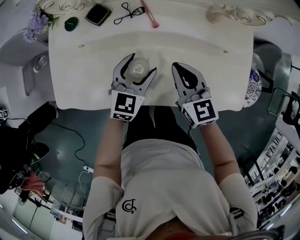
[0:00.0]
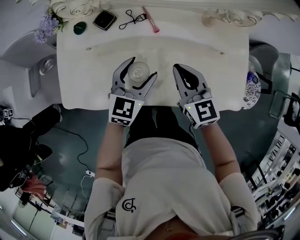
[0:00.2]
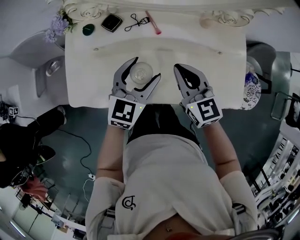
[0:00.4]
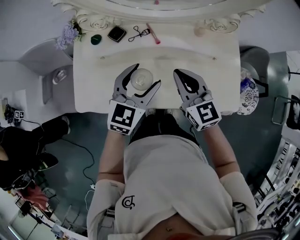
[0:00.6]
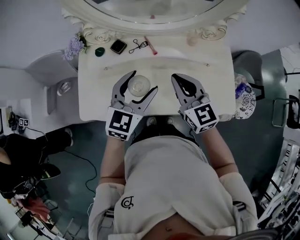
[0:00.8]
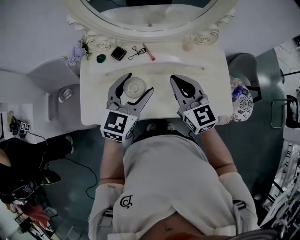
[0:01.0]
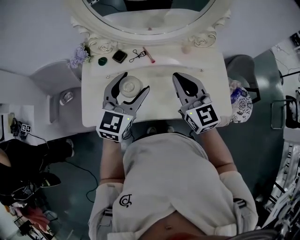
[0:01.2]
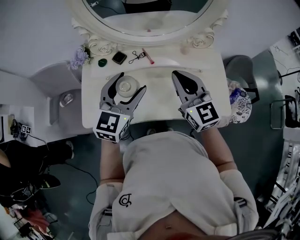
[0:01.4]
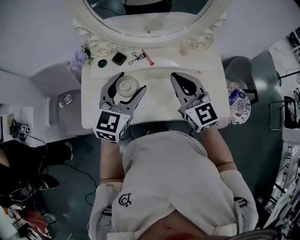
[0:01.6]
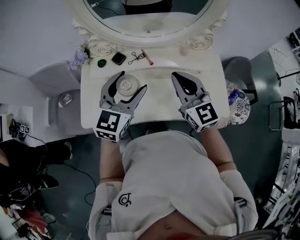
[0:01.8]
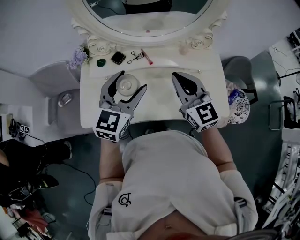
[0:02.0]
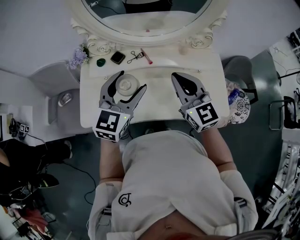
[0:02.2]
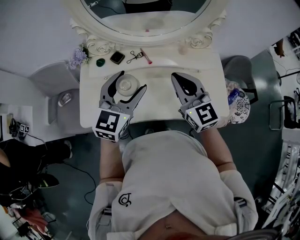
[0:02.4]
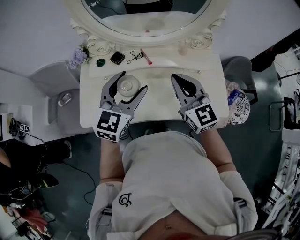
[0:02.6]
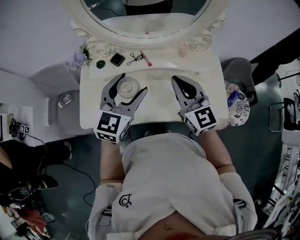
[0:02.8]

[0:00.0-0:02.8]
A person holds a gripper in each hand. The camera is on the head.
0:00.0 to 0:01.4: The two grippers go approximately 25 cm upward. The right gripper swivels approximately 20 degrees.
0:01.4 to 0:02.8: The grippers stay close to where they were, moving slightly.

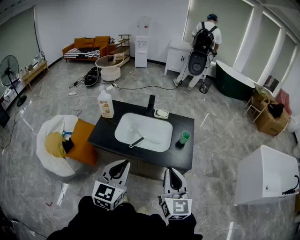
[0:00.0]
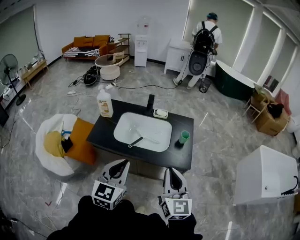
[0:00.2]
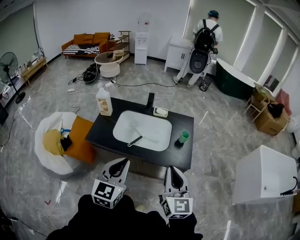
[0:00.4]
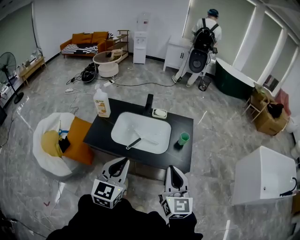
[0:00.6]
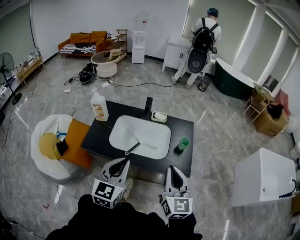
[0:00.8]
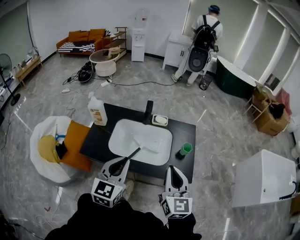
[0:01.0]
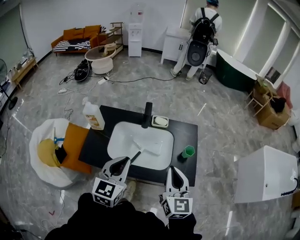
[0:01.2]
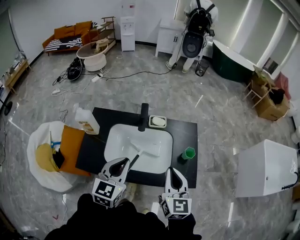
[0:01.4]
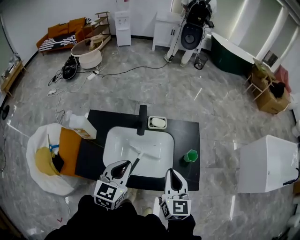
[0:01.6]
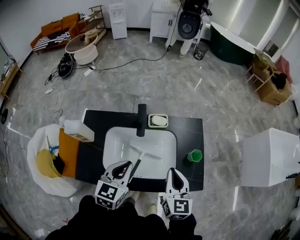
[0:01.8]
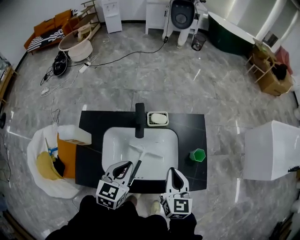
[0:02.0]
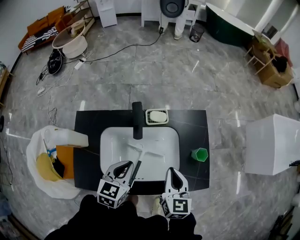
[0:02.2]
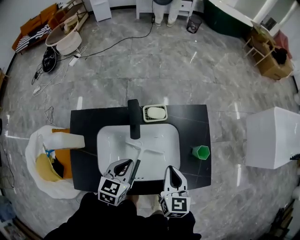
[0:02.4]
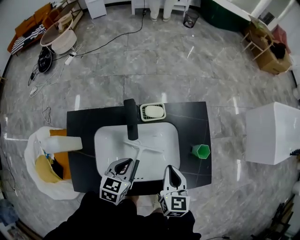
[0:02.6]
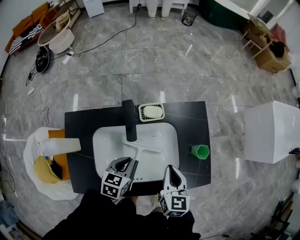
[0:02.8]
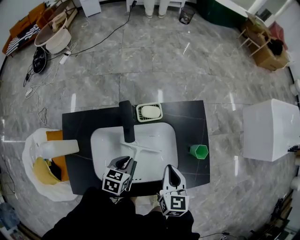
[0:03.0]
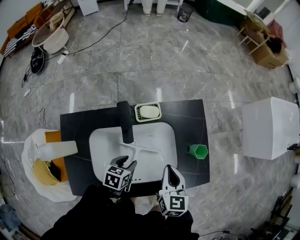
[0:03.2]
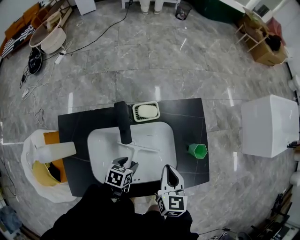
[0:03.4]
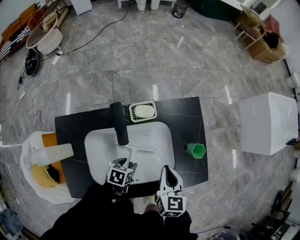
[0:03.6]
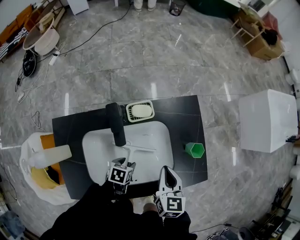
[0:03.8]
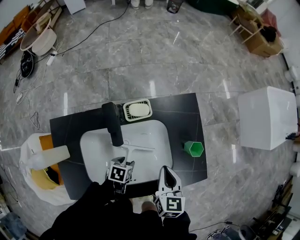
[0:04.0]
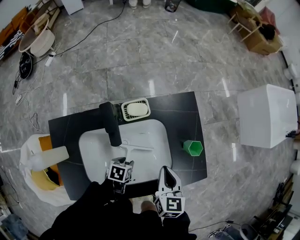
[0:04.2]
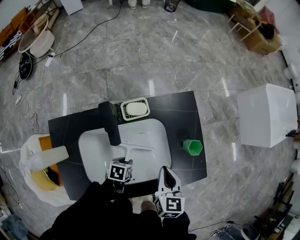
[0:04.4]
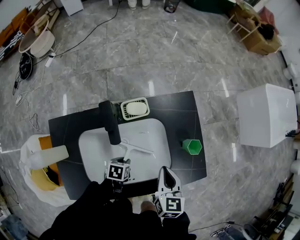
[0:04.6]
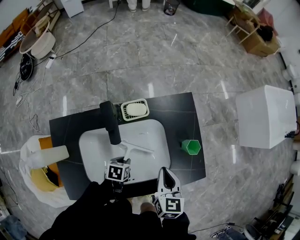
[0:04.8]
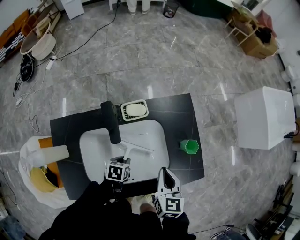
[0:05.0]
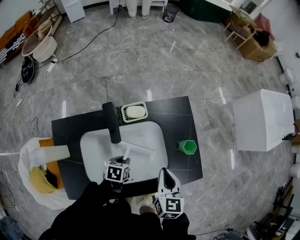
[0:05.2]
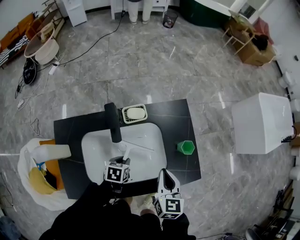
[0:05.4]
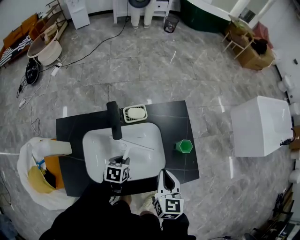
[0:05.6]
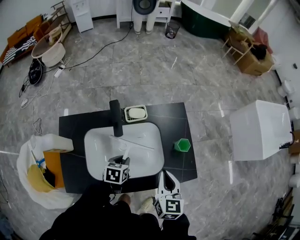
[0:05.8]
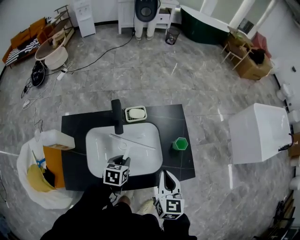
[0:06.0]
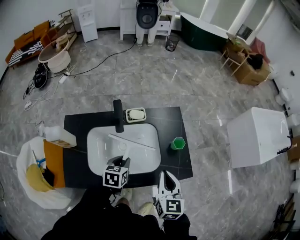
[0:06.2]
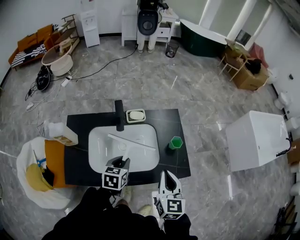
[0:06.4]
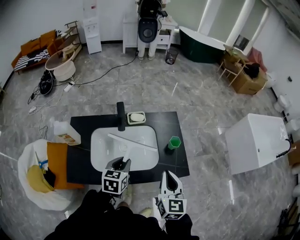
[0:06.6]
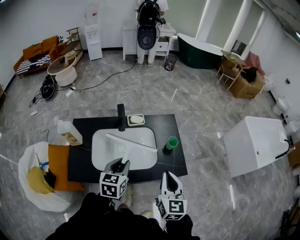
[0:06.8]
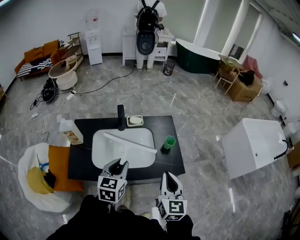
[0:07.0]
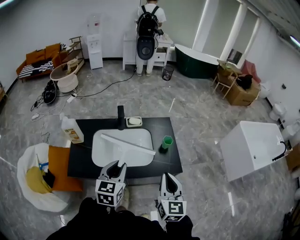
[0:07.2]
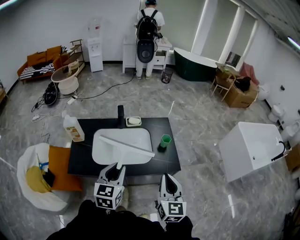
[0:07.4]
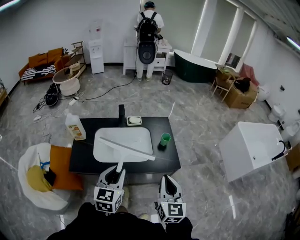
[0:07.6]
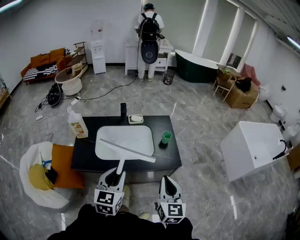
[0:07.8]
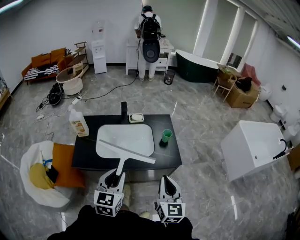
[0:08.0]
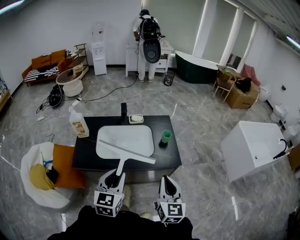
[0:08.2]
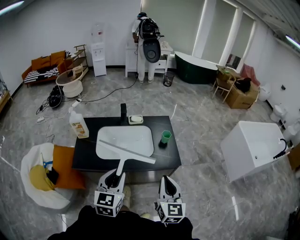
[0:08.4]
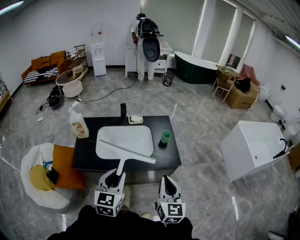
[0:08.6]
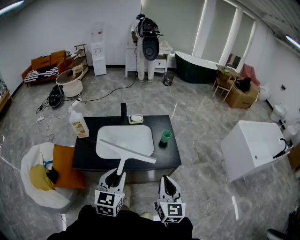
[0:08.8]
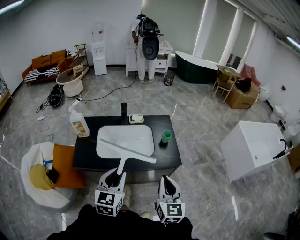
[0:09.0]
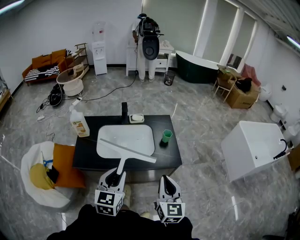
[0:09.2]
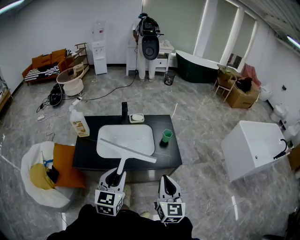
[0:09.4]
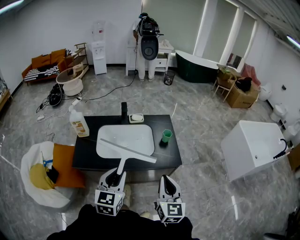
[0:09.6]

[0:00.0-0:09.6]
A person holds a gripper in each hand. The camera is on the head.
0:00.0 to 0:01.6: Both grippers move forward, about 35 cm.
0:01.6 to 0:03.2: The right gripper shifts approximately 20 cm downward and forward, and changes its angle by some 20 degrees; the left gripper is displaced downward and forward by about 30 cm, swivels roughly 40 degrees, and opens.
0:03.2 to 0:04.8: The left gripper is displaced downward by about 5 cm.
0:04.8 to 0:06.4: The left gripper heads upward, covering about 25 cm, and turns by some 30 degrees, while the right gripper travels upward, backward and to the right by approximately 20 cm.
0:06.4 to 0:08.0: The left gripper heads backward and upward, covering some 35 cm, and turns by roughly 30 degrees. The right gripper shifts about 25 cm backward.
0:08.0 to 0:09.6: Both grippers stay about where they are.

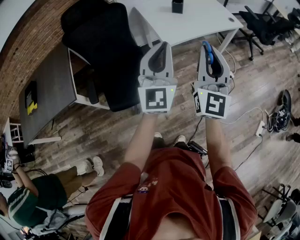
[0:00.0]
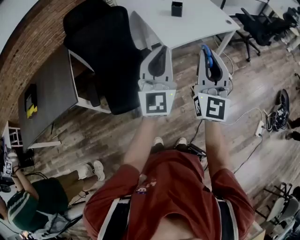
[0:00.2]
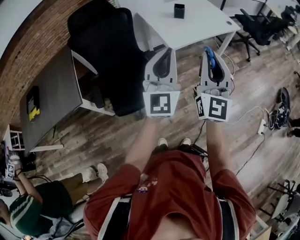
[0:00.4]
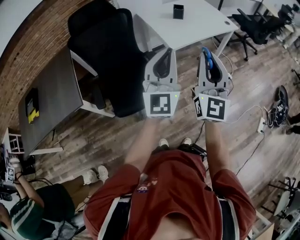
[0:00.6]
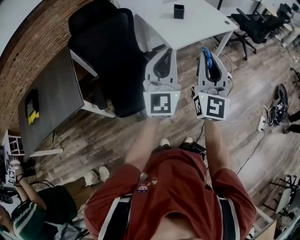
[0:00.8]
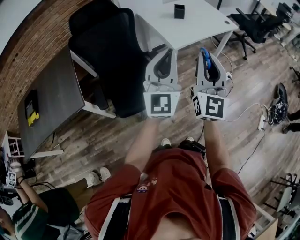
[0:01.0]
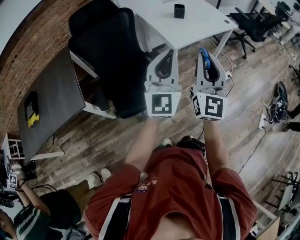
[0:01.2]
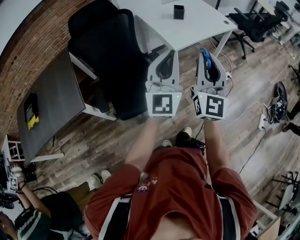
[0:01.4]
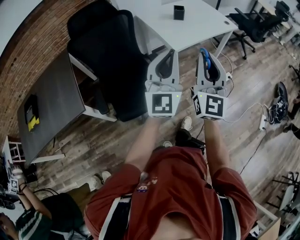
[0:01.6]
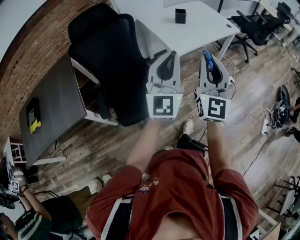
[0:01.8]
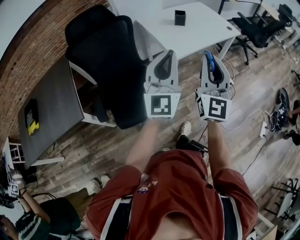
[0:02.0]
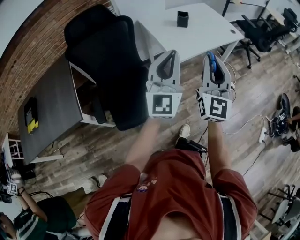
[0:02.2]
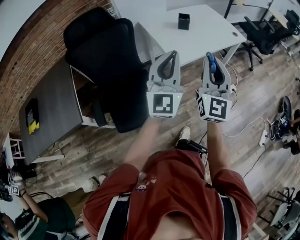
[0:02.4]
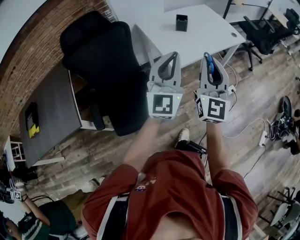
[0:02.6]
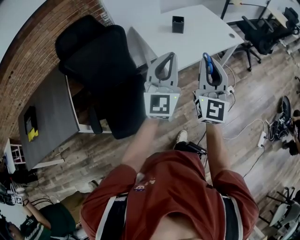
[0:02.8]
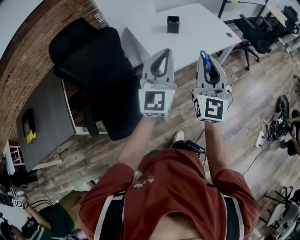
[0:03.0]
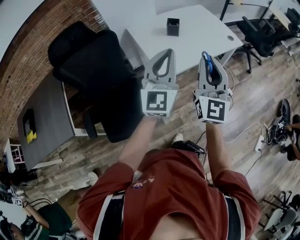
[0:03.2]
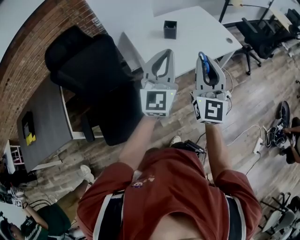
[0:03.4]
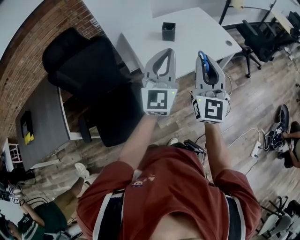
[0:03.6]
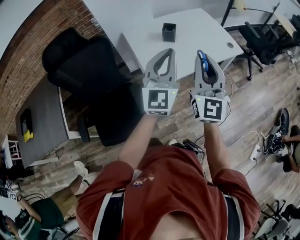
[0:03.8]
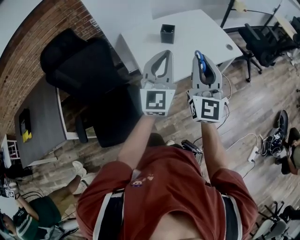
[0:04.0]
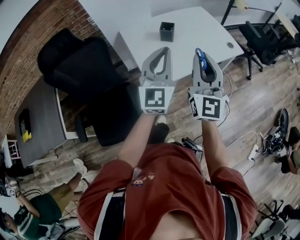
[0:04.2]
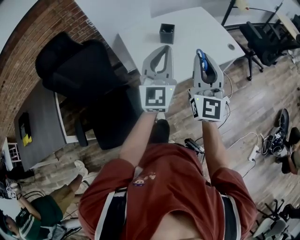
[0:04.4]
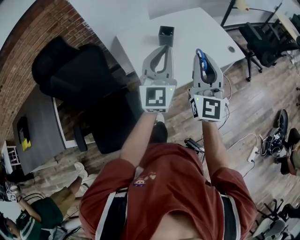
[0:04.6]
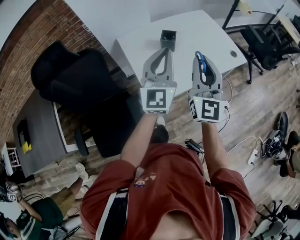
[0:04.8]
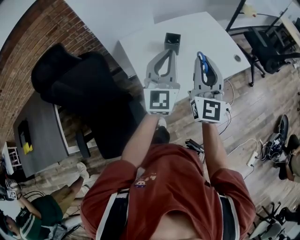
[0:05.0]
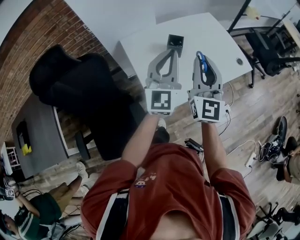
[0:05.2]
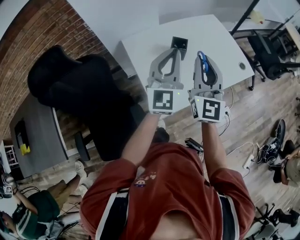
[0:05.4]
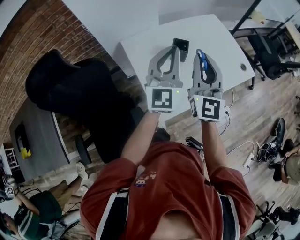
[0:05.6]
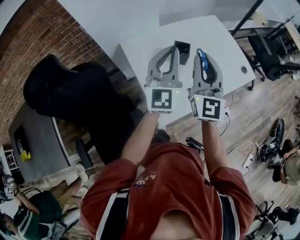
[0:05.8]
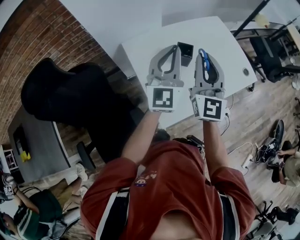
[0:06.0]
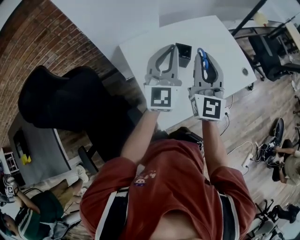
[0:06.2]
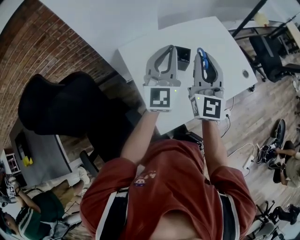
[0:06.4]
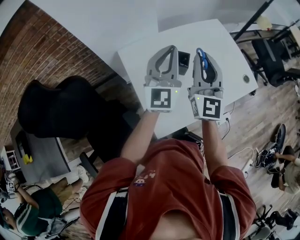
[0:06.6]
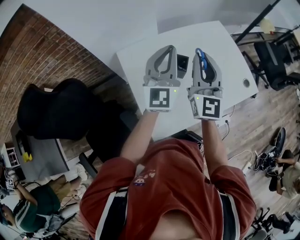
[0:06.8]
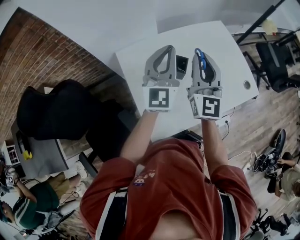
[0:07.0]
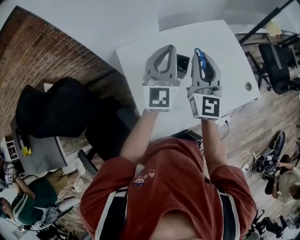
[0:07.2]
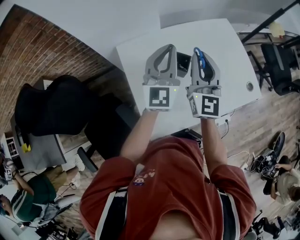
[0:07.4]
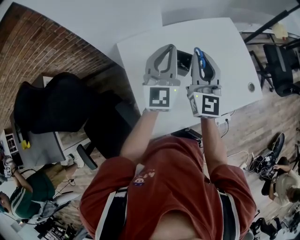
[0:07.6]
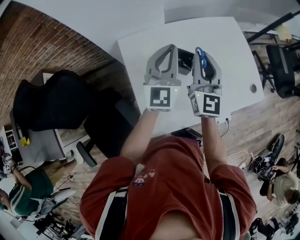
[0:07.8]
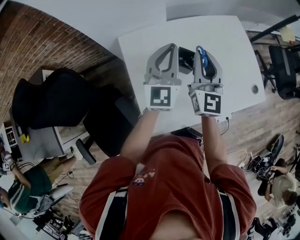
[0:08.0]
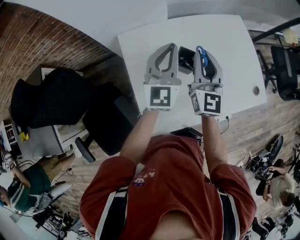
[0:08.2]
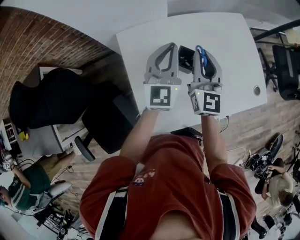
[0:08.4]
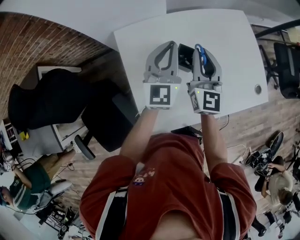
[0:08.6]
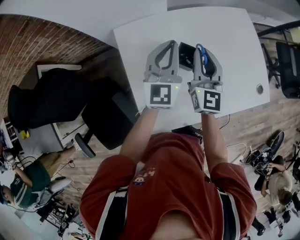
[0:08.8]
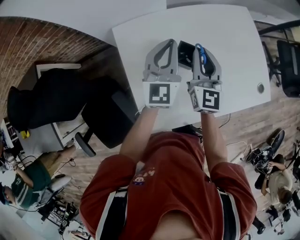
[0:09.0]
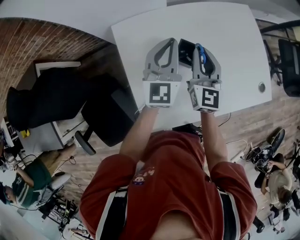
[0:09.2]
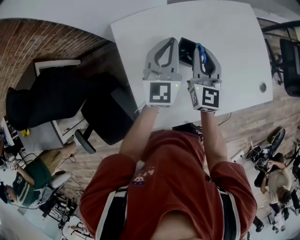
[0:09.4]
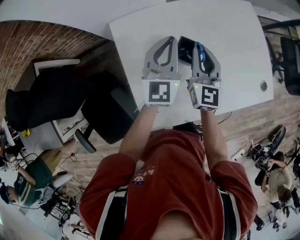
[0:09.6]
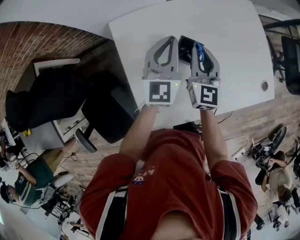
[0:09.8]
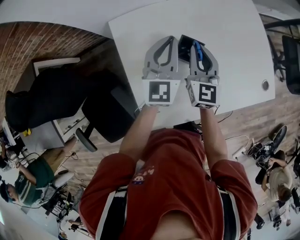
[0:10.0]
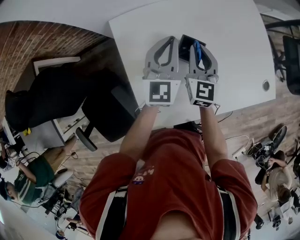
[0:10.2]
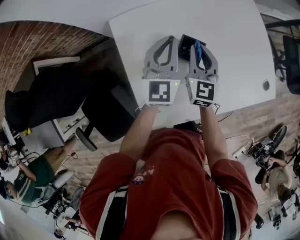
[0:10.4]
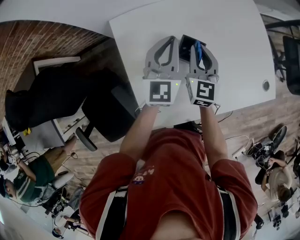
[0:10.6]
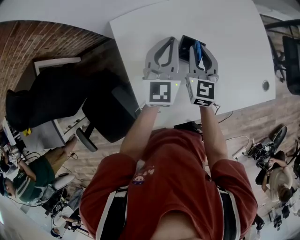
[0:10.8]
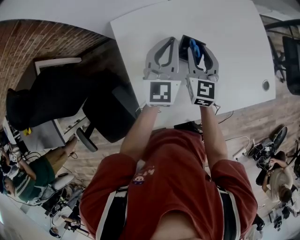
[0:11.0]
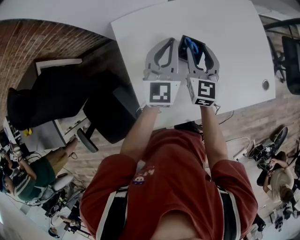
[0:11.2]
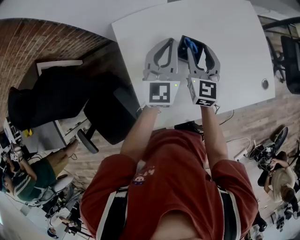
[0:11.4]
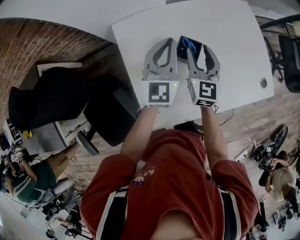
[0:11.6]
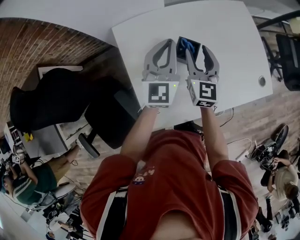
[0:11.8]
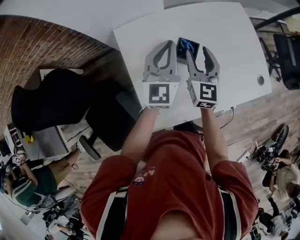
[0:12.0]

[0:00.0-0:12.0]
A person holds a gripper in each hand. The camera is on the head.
0:00.0 to 0:01.6: The grippers both shift to the left and backward by approximately 10 cm.
0:01.6 to 0:03.0: Both grippers travel together forward, about 20 cm.
0:03.0 to 0:04.4: Both grippers move forward, some 15 cm.
0:04.4 to 0:06.0: The left gripper travels forward by roughly 25 cm. The right gripper moves forward and to the left, about 25 cm.
0:06.0 to 0:07.6: The grippers both shift forward and downward by approximately 15 cm.
0:07.6 to 0:09.0: The two grippers go about 10 cm downward.
0:09.0 to 0:10.4: The right gripper moves downward, some 5 cm.
0:10.4 to 0:12.0: The right gripper shifts about 5 cm upward, and opens. The left gripper ends up roughly 5 cm from where it was.
